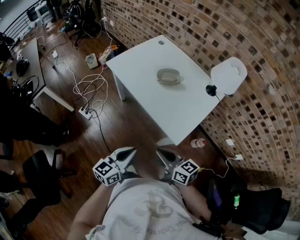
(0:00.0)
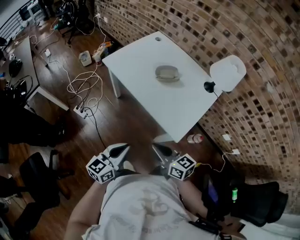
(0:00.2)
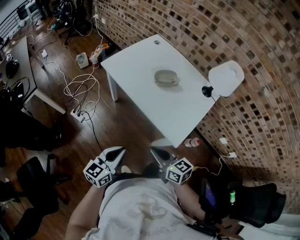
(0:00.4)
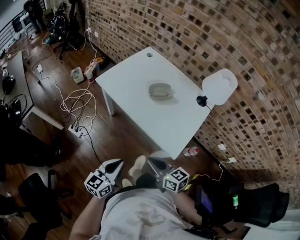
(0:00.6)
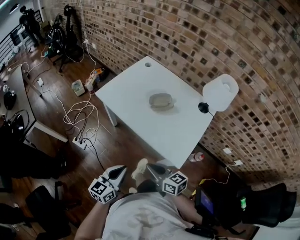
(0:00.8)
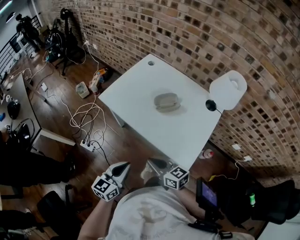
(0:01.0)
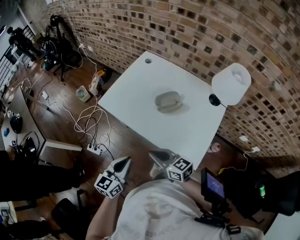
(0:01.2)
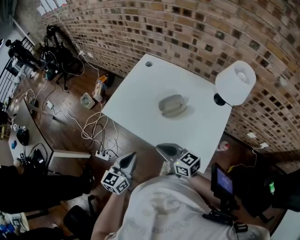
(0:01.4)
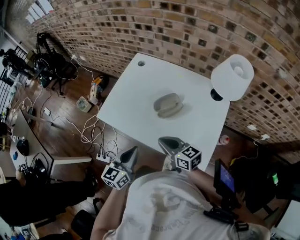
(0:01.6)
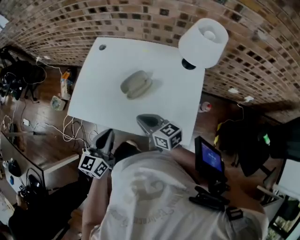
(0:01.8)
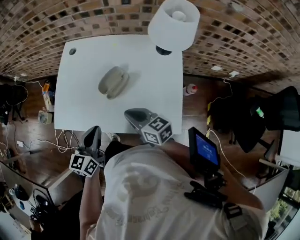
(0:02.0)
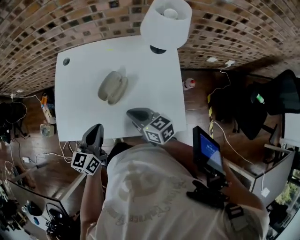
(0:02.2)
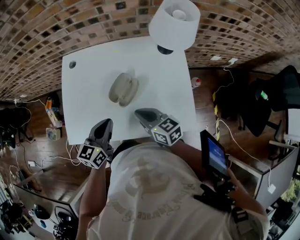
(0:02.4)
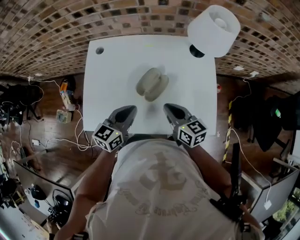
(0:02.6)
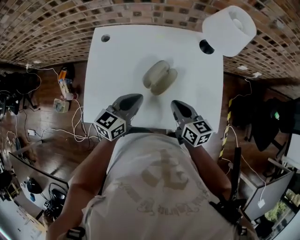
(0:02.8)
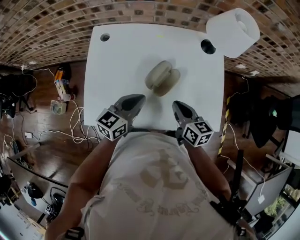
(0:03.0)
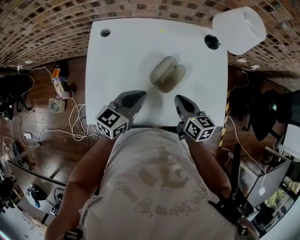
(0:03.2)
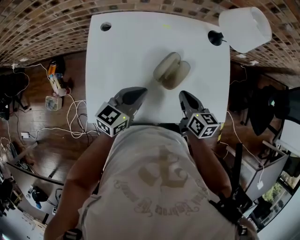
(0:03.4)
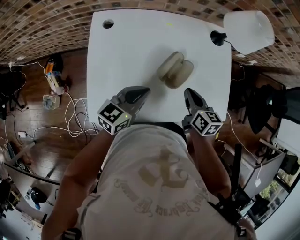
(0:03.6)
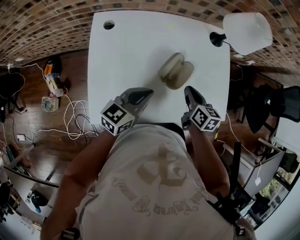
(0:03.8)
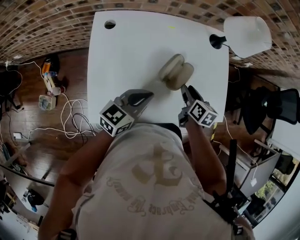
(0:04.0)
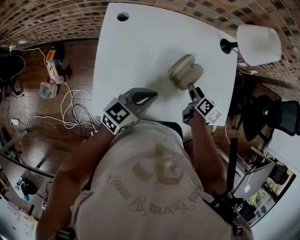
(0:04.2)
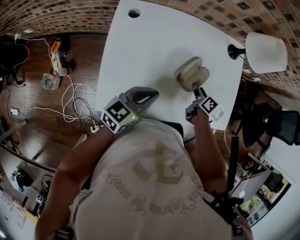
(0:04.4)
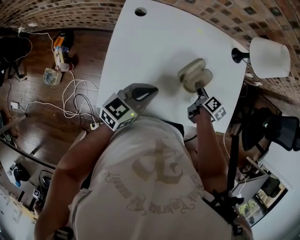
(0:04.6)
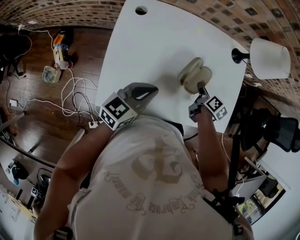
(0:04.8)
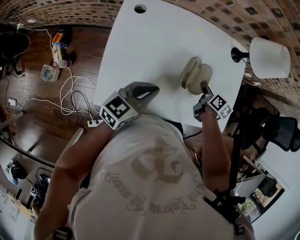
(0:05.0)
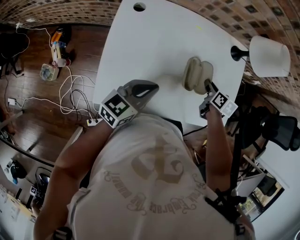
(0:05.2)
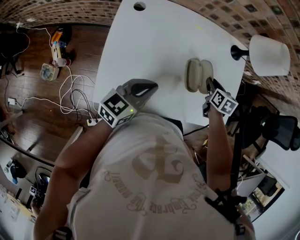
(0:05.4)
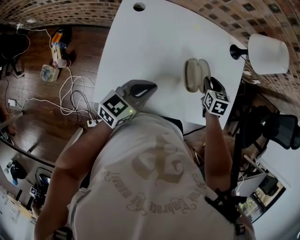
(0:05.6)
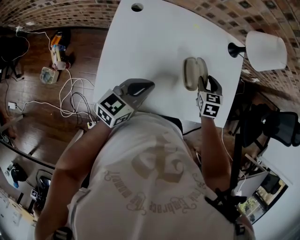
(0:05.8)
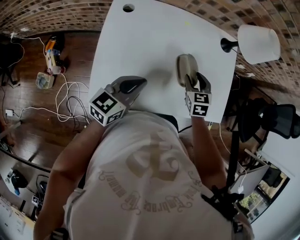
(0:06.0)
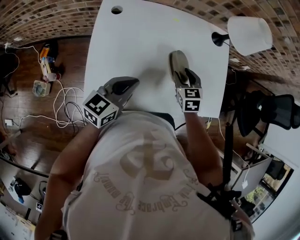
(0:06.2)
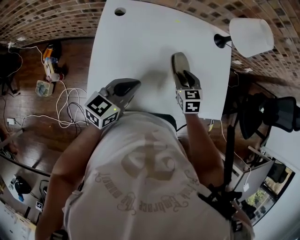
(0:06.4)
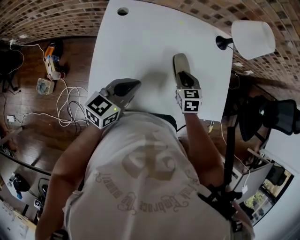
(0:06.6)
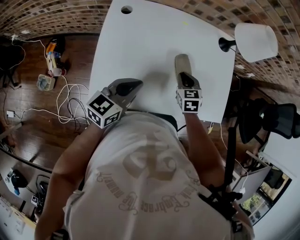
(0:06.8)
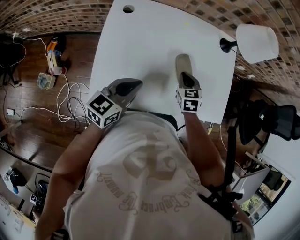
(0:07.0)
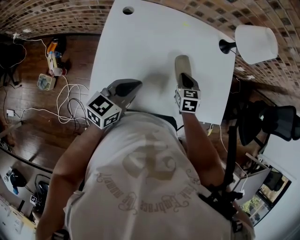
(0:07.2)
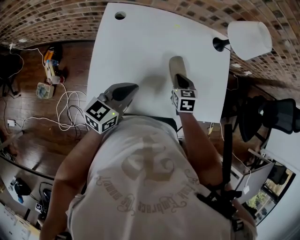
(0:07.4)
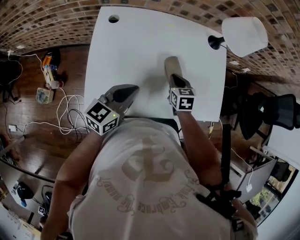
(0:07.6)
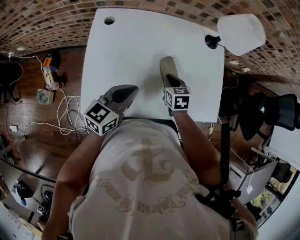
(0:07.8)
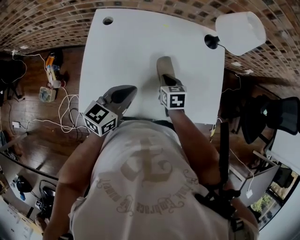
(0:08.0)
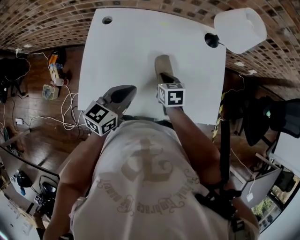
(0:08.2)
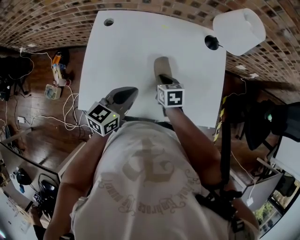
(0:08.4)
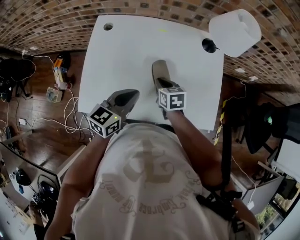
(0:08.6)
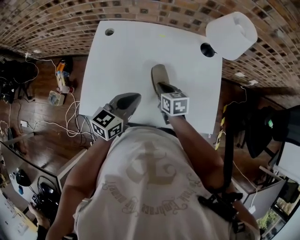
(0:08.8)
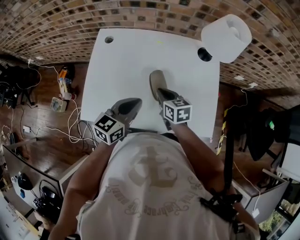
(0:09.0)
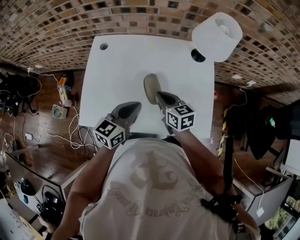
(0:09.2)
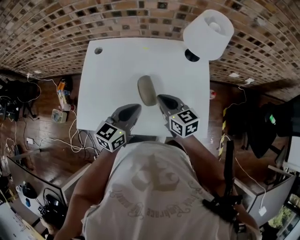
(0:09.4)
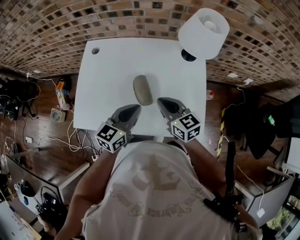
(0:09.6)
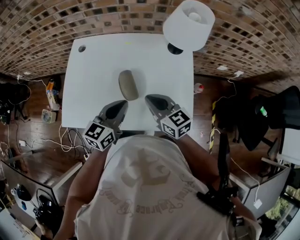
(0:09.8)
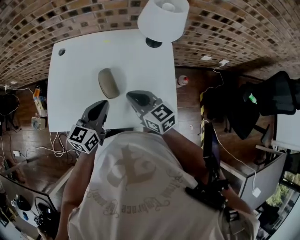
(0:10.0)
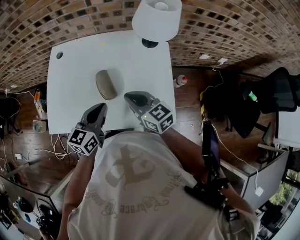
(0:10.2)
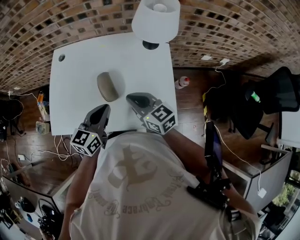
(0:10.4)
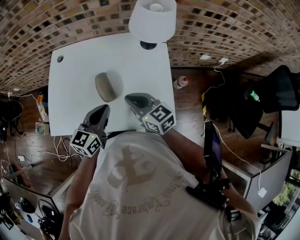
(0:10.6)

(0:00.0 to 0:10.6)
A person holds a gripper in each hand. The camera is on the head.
0:00.0 - 0:01.6: The two grippers go about 30 cm forward.
0:01.6 - 0:03.0: The left gripper changes place by roughly 20 cm, and rotates approximately 40 degrees. The right gripper shifts by roughly 10 cm, and turns by some 50 degrees.
0:03.0 - 0:04.6: The left gripper is displaced to the left by roughly 10 cm. Meanwhile the right gripper moves downward and forward, roughly 15 cm, turns by some 40 degrees, and opens its fingers.
0:04.6 - 0:06.0: The right gripper moves upward, about 5 cm, and rotates around the line of its fingers by roughly 60 degrees, counterclockwise from behind.
0:06.0 - 0:07.6: The right gripper closes.
0:07.6 - 0:09.0: The right gripper goes roughly 5 cm upward, and changes its angle by roughly 30 degrees, while the left gripper is displaced to the right by some 10 cm.
0:09.0 - 0:10.6: The left gripper moves to the right, some 10 cm. Meanwhile the right gripper moves to the right, upward and backward, roughly 15 cm, and rotates approximately 20 degrees.

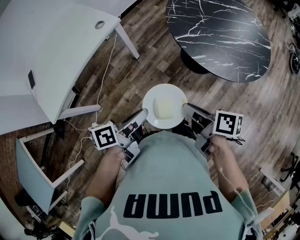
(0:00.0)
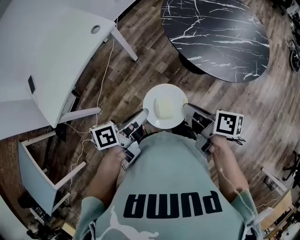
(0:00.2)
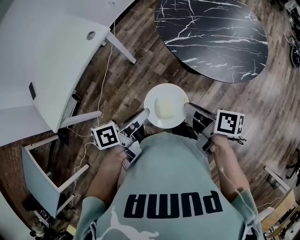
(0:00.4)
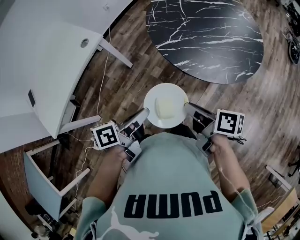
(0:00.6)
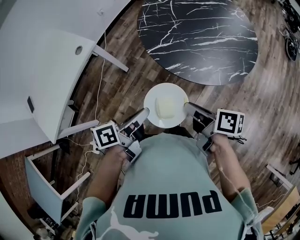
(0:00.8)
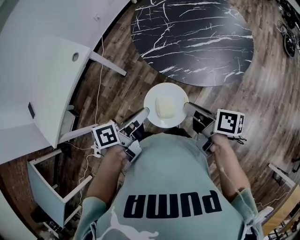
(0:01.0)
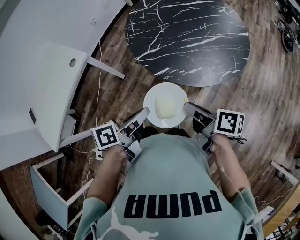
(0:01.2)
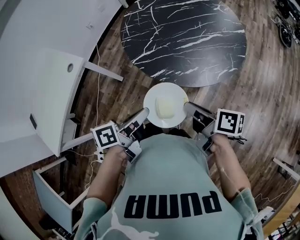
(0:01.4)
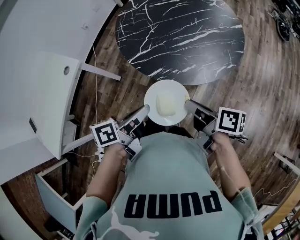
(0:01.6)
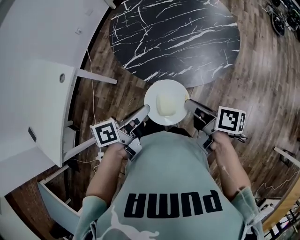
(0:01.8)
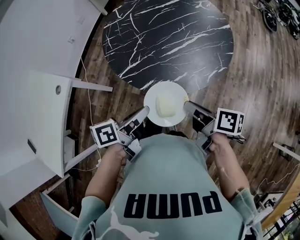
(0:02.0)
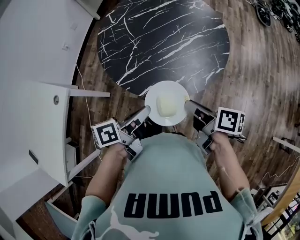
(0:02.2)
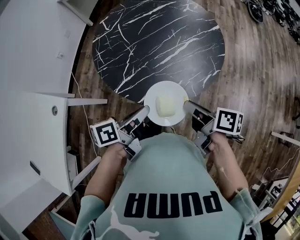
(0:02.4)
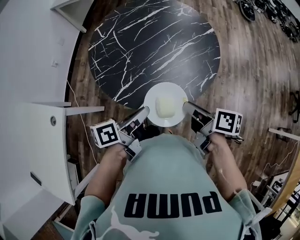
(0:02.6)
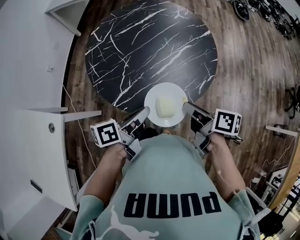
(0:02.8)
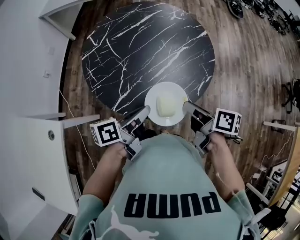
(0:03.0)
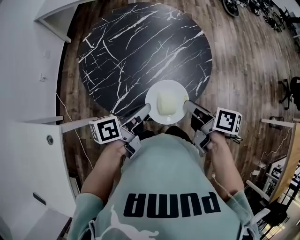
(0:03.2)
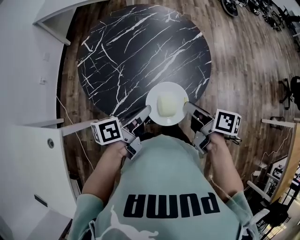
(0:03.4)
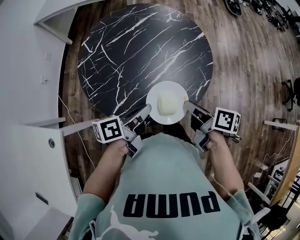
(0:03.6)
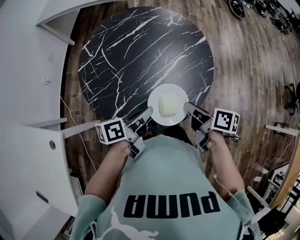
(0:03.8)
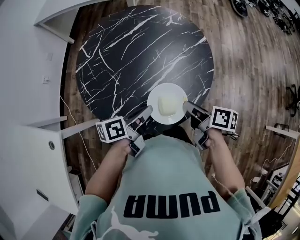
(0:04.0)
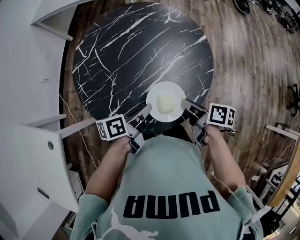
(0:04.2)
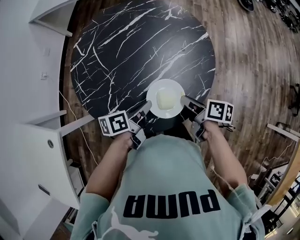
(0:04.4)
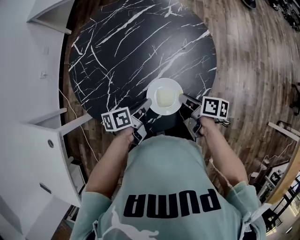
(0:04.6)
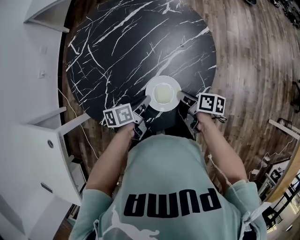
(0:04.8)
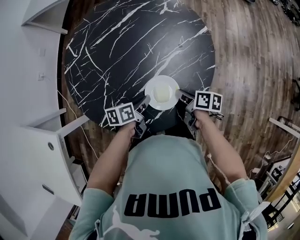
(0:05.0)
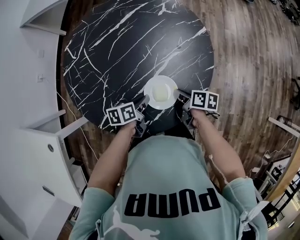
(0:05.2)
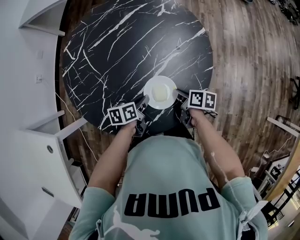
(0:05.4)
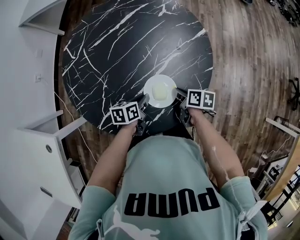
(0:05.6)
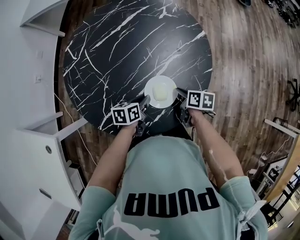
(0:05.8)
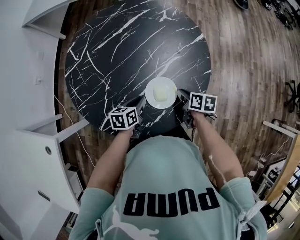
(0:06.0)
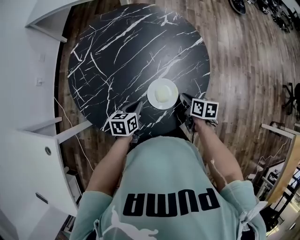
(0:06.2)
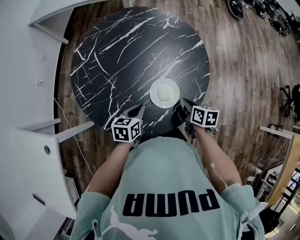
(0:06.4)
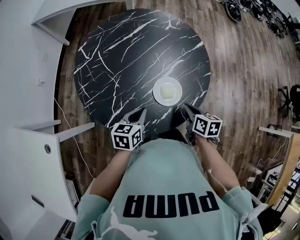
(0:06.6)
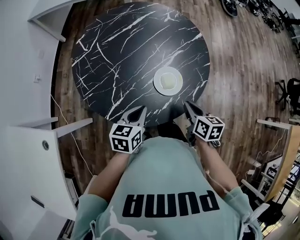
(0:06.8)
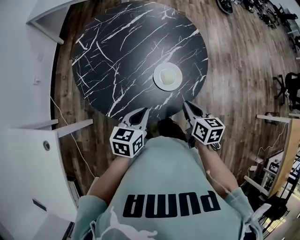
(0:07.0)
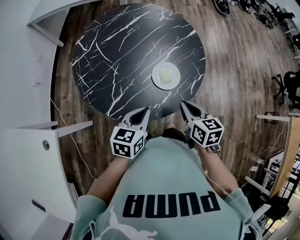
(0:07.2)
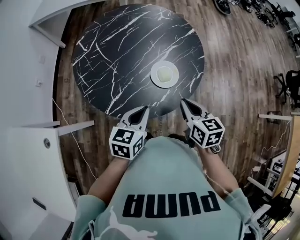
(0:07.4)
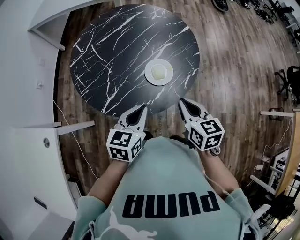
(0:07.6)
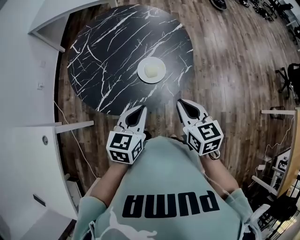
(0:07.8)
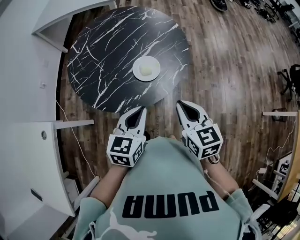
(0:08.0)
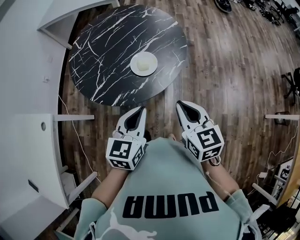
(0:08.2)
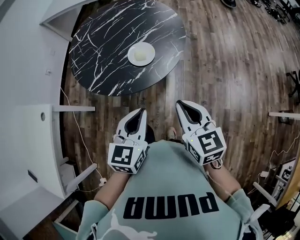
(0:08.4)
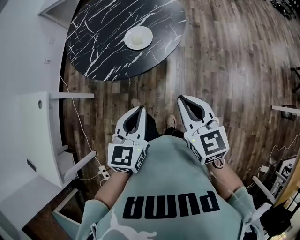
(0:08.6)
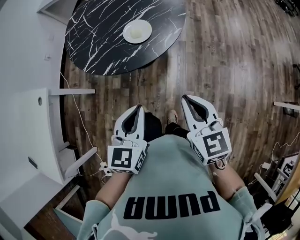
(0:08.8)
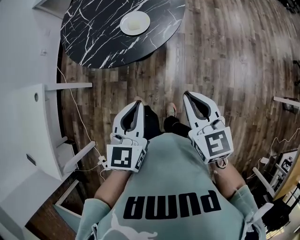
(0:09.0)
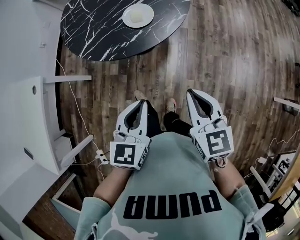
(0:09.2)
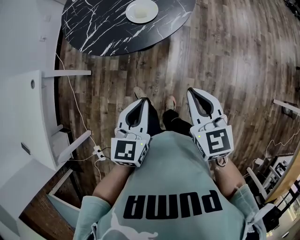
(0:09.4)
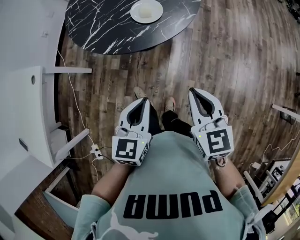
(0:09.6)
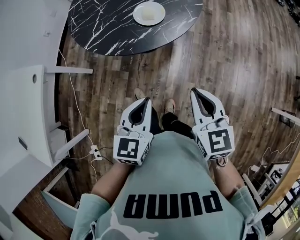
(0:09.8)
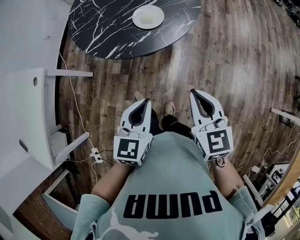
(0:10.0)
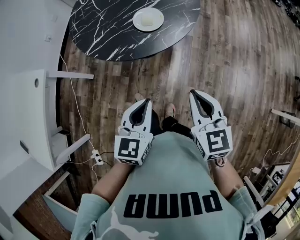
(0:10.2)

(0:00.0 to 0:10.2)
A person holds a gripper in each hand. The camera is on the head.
0:00.0 - 0:01.4: The left gripper shifts roughly 20 cm to the right and forward; the right gripper travels to the right by some 20 cm.
0:01.4 - 0:03.0: The right gripper ends up approximately 15 cm from where it was, and swivels some 30 degrees. The left gripper ends up approximately 20 cm from where it was, and rotates approximately 30 degrees.
0:03.0 - 0:04.4: Both grippers travel together forward, downward and to the right, about 15 cm.
0:04.4 - 0:05.8: Both grippers travel together downward, some 10 cm. The left gripper turns by about 20 degrees.
0:05.8 - 0:07.2: The two grippers go roughly 25 cm upward and backward. The right gripper rotates approximately 30 degrees; the left gripper swivels some 30 degrees.
0:07.2 - 0:08.8: Both grippers travel together backward and to the right, some 25 cm. The right gripper changes its angle by some 20 degrees. The left gripper turns by some 20 degrees.
0:08.8 - 0:10.2: There are only small adjustments of the grippers.

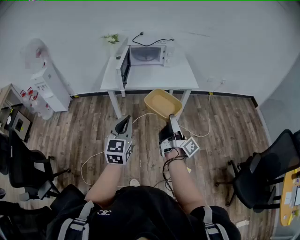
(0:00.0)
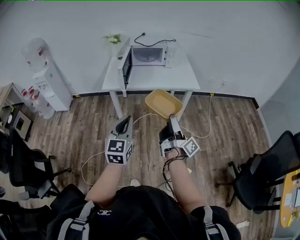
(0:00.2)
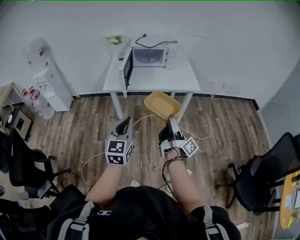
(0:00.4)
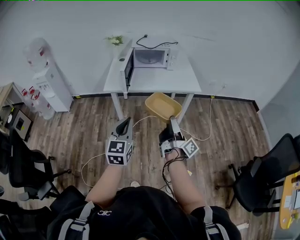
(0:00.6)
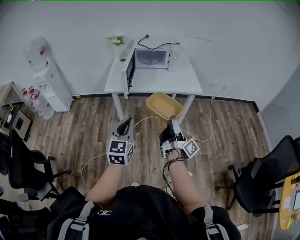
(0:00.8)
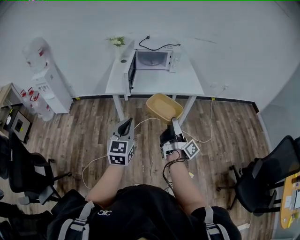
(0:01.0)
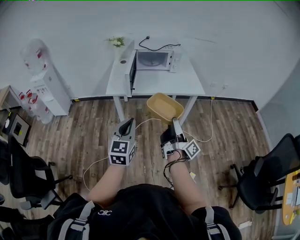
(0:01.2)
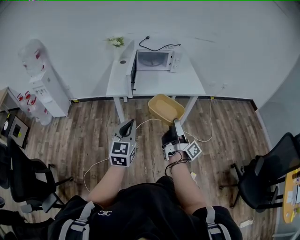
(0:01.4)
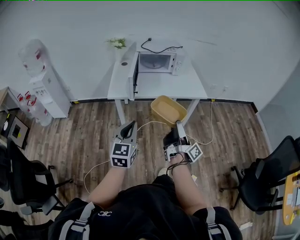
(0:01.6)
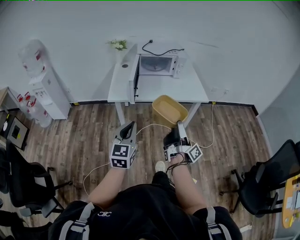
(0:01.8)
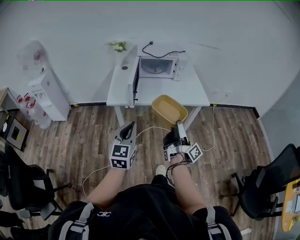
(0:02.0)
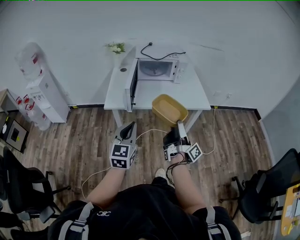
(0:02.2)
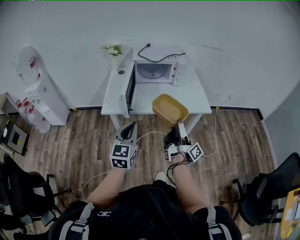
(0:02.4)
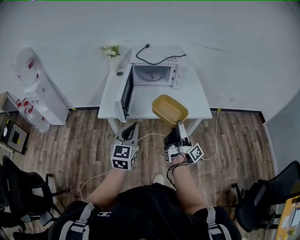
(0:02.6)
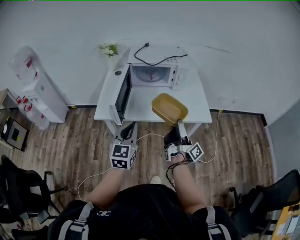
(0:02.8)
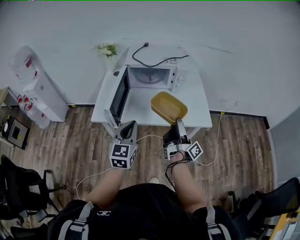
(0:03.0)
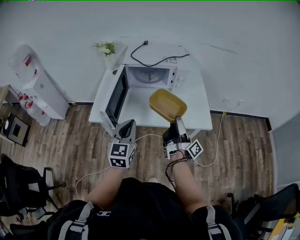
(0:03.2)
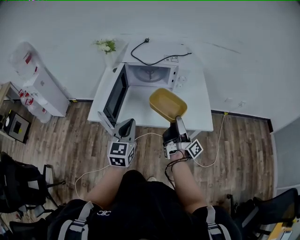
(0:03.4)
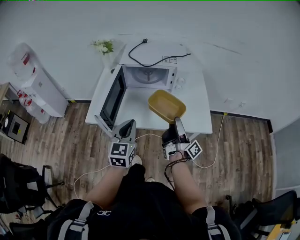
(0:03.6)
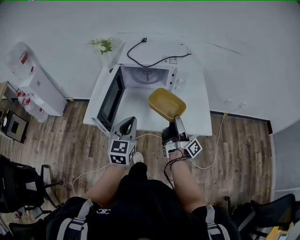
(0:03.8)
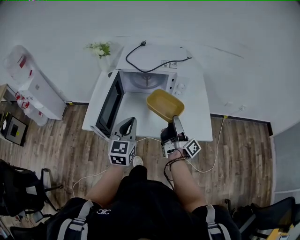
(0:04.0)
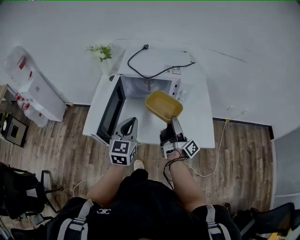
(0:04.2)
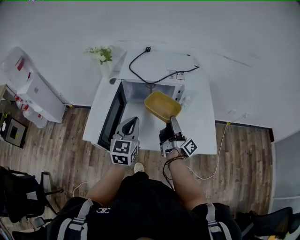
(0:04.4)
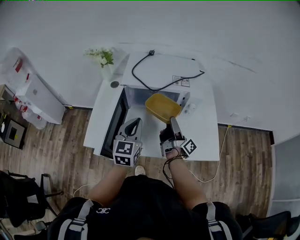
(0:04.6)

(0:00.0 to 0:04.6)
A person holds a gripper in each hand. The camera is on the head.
0:00.0 - 0:01.6: The left gripper shifts by approximately 15 cm.
0:01.6 - 0:03.0: The left gripper moves about 35 cm.
0:03.0 - 0:04.6: The left gripper shifts by roughly 30 cm.
